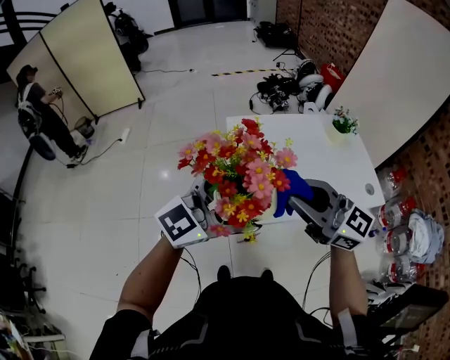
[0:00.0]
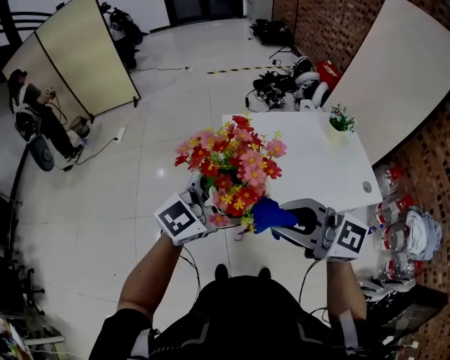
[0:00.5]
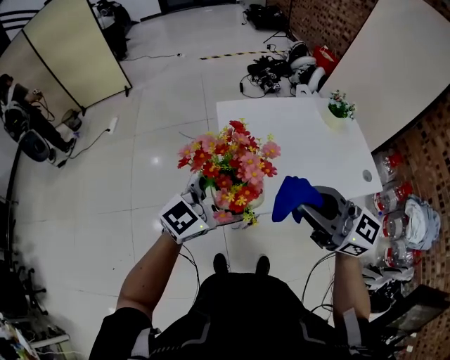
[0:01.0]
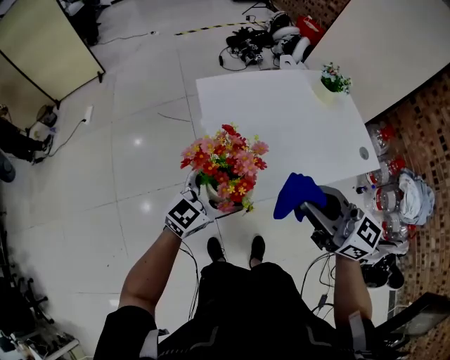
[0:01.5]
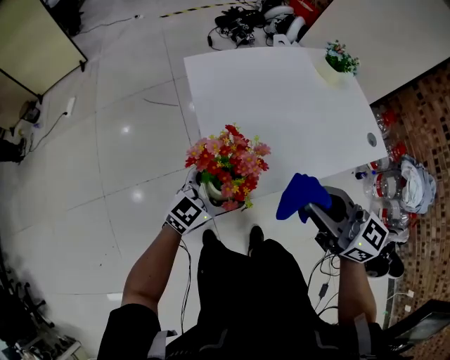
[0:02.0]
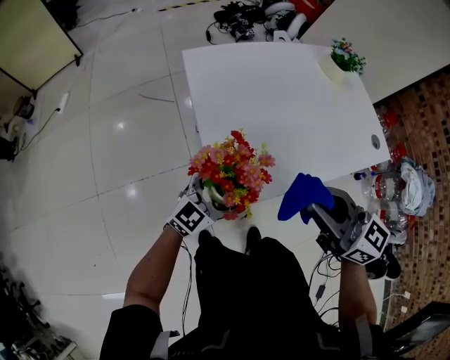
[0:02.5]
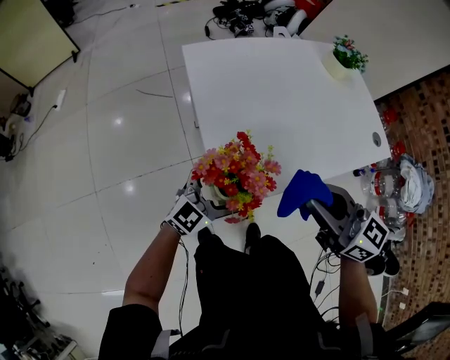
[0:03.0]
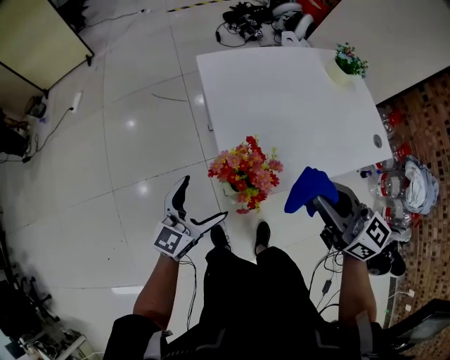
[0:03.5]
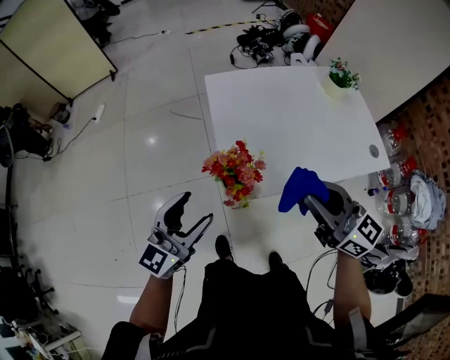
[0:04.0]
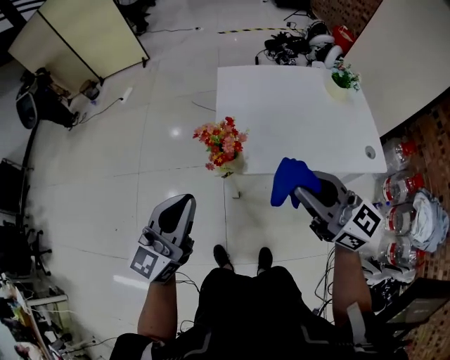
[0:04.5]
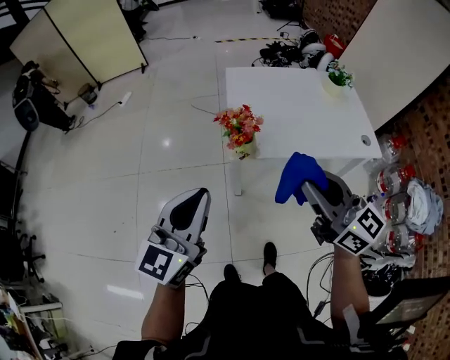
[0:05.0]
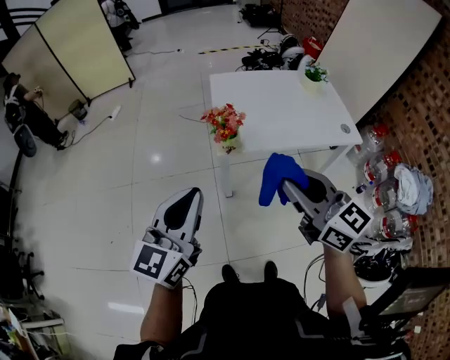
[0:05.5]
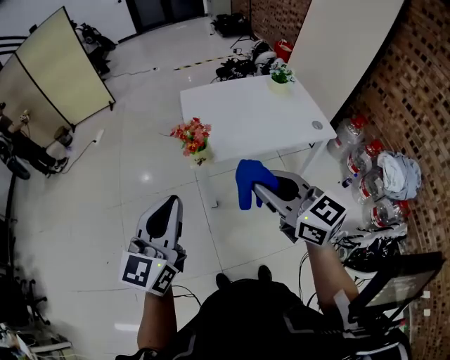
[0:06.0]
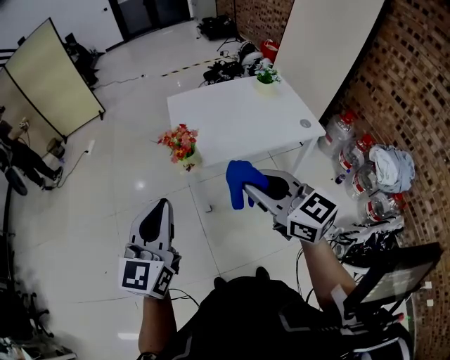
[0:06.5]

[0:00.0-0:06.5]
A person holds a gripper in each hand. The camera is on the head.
0:00.0 to 0:02.0: The right gripper heads downward, covering about 20 cm, and changes its angle by roughly 20 degrees. Meanwhile the left gripper shifts about 35 cm downward.
0:02.0 to 0:04.5: The right gripper changes place by roughly 20 cm. Meanwhile the left gripper moves upward, roughly 25 cm, swivels about 40 degrees, and closes.
0:04.5 to 0:06.5: The left gripper is displaced backward and upward by roughly 20 cm. The right gripper heads backward, covering some 20 cm.

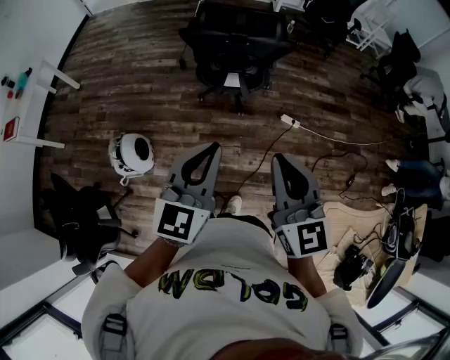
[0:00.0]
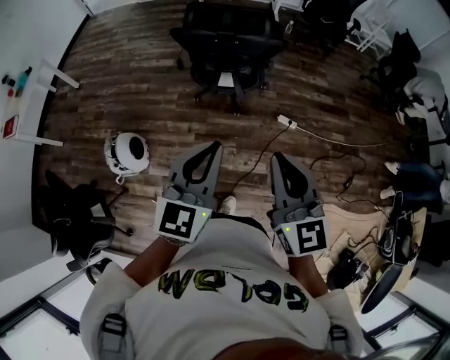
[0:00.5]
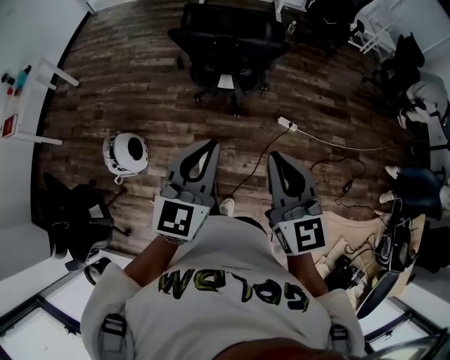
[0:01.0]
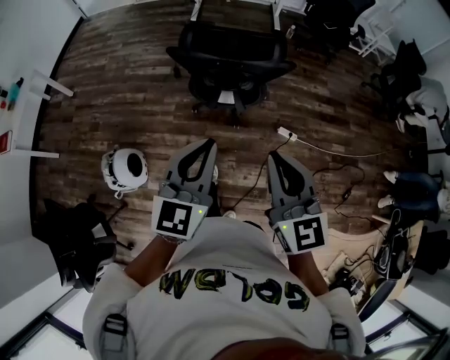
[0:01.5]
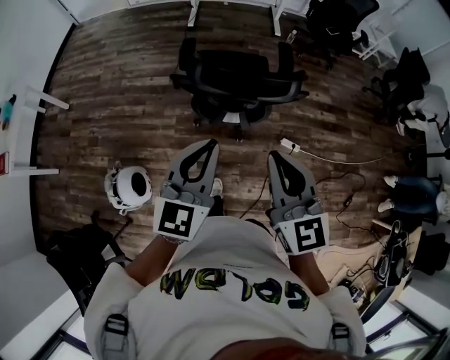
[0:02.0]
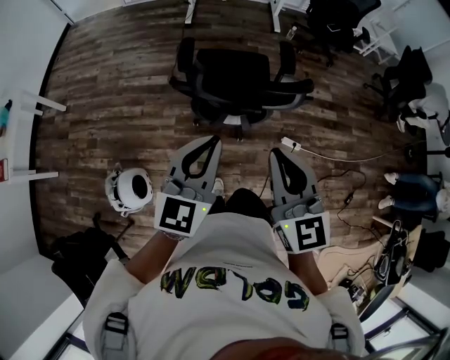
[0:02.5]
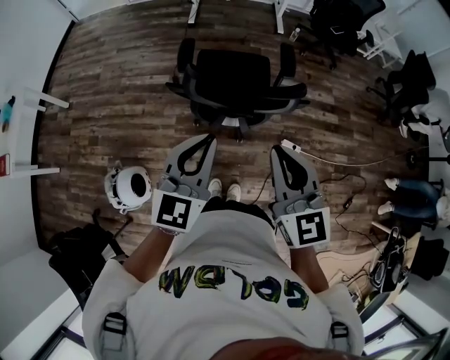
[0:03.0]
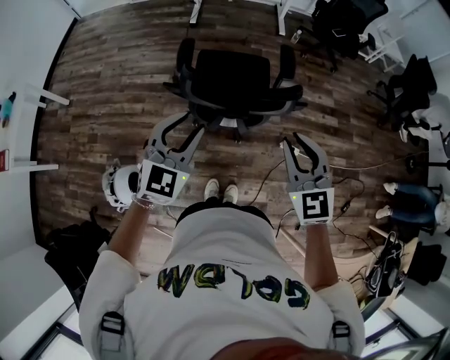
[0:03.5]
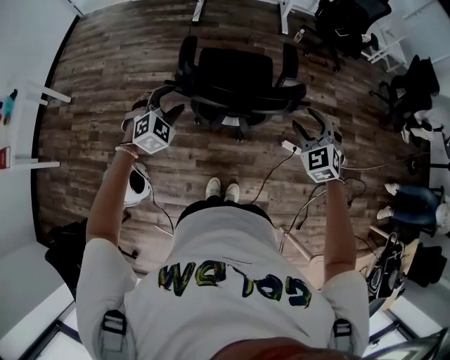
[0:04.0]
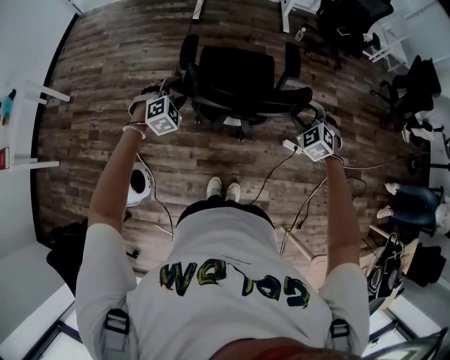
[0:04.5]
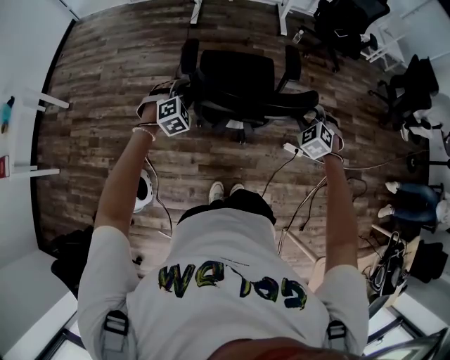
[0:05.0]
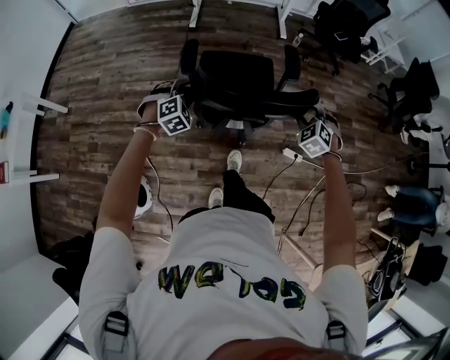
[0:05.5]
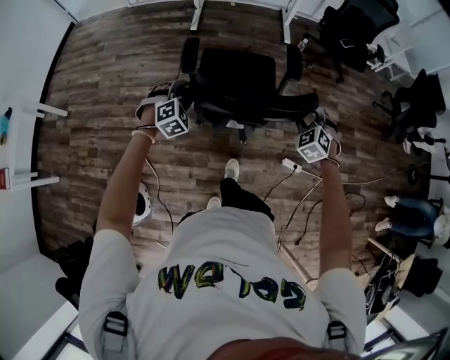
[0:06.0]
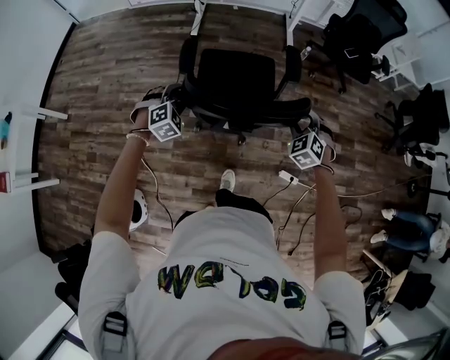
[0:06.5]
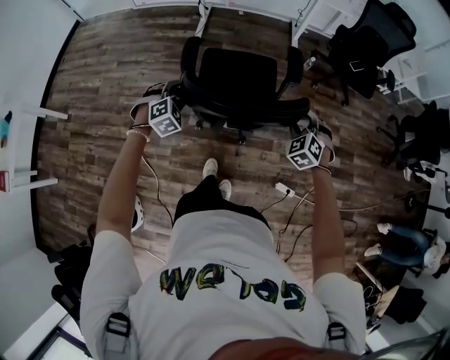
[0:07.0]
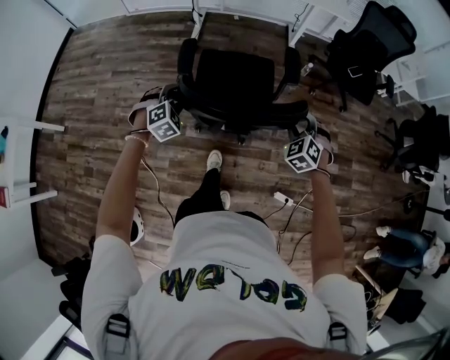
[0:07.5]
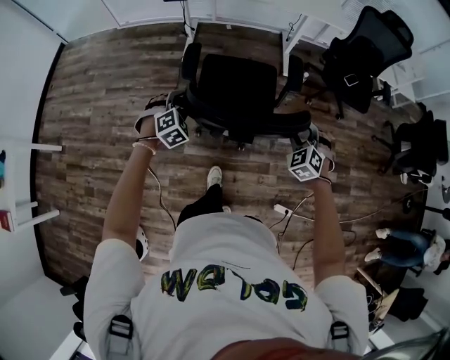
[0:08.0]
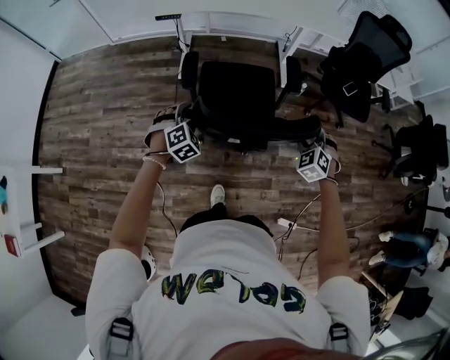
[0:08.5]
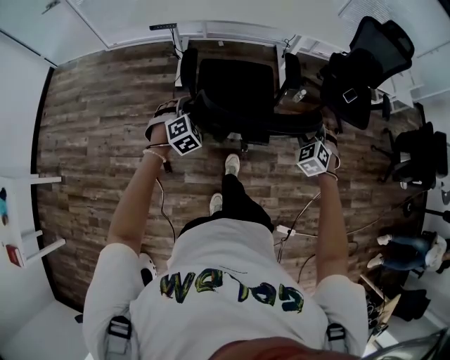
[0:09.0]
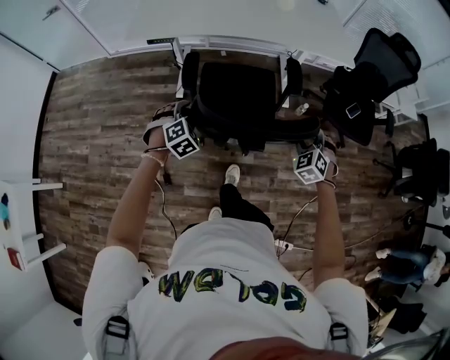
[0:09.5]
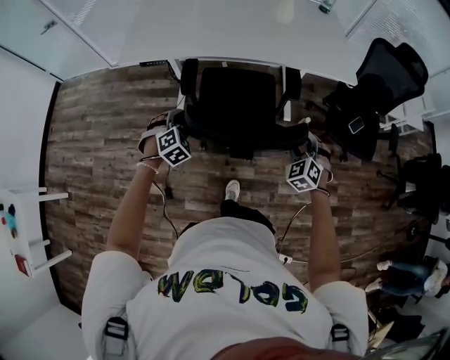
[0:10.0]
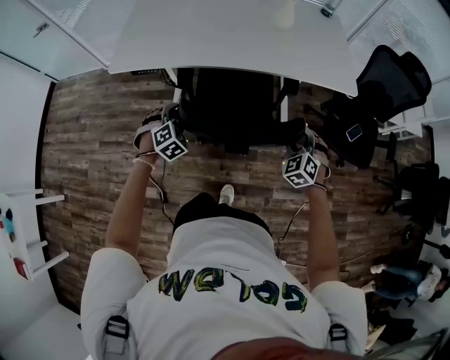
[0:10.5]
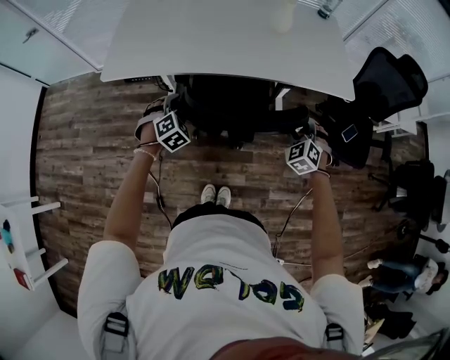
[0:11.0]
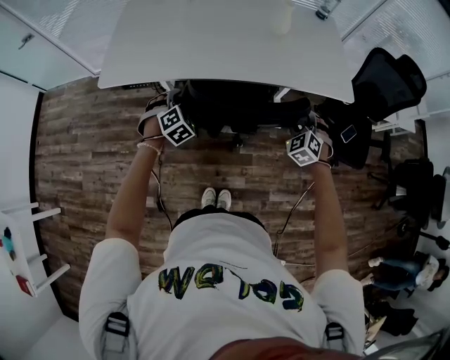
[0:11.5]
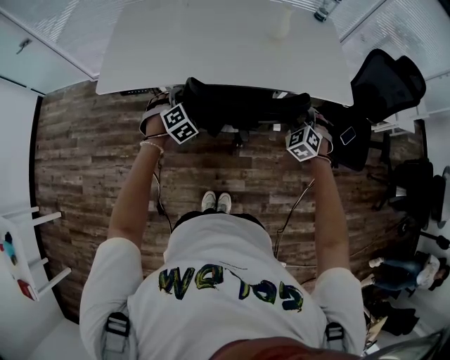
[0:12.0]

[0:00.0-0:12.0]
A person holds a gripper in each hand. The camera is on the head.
0:00.0 to 0:02.0: Both grippers travel together forward, approximately 30 cm.
0:02.0 to 0:04.0: The left gripper is displaced forward, downward and to the left by about 30 cm, points its fingers roughly 30 degrees further downward, and opens up; the right gripper heads forward, downward and to the right, covering about 30 cm, rotates about 40 degrees, and opens up.
0:04.0 to 0:06.0: The left gripper is displaced forward by some 20 cm, while the right gripper moves forward and downward, about 25 cm.
0:06.0 to 0:08.0: Both grippers move forward, some 35 cm.
0:08.0 to 0:10.0: Both grippers move forward, about 40 cm.
0:10.0 to 0:12.0: The grippers both shift forward by about 25 cm.

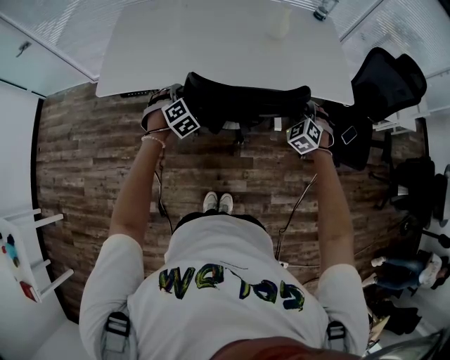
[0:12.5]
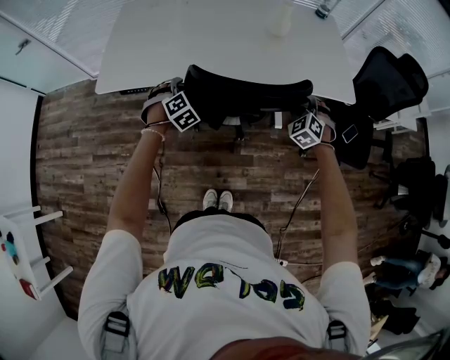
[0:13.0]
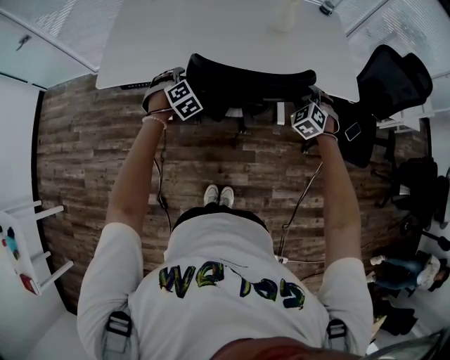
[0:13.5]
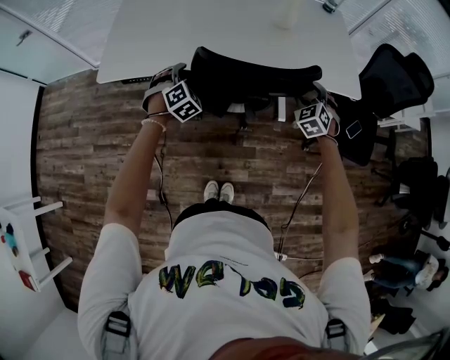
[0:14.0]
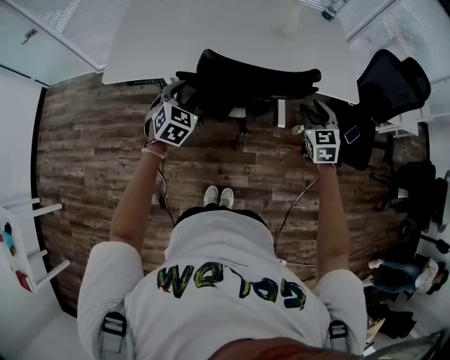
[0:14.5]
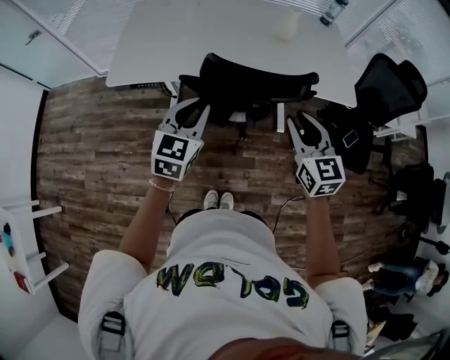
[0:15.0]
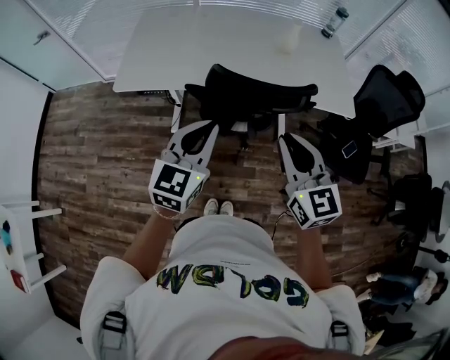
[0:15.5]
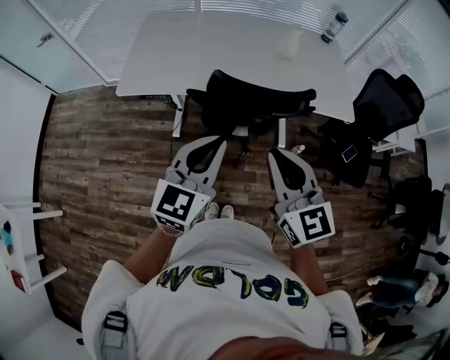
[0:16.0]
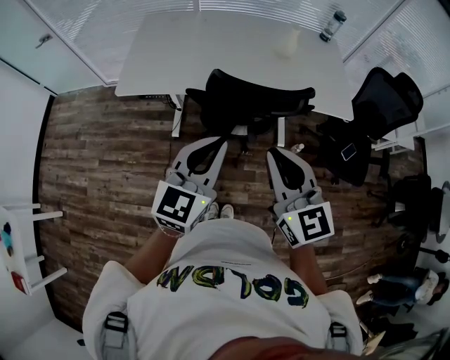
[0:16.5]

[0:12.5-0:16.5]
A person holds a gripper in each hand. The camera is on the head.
0:12.5 to 0:14.5: The right gripper goes roughly 5 cm upward, and turns by roughly 40 degrees, while the left gripper moves upward and backward, some 10 cm, and changes its angle by roughly 30 degrees.
0:14.5 to 0:16.5: The left gripper shifts about 25 cm upward and backward, turns by roughly 40 degrees, and closes up. Meanwhile the right gripper shifts about 35 cm upward, backward and to the left, rotates roughly 30 degrees, and closes.

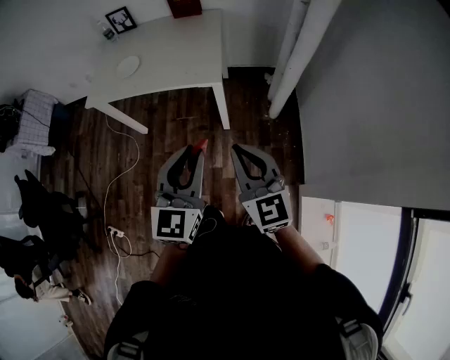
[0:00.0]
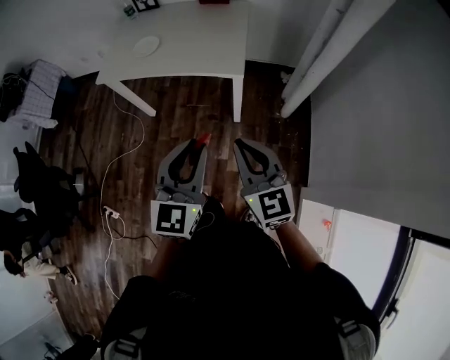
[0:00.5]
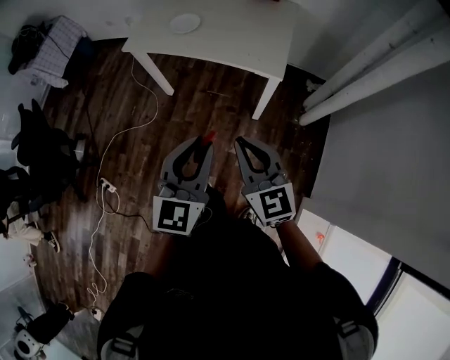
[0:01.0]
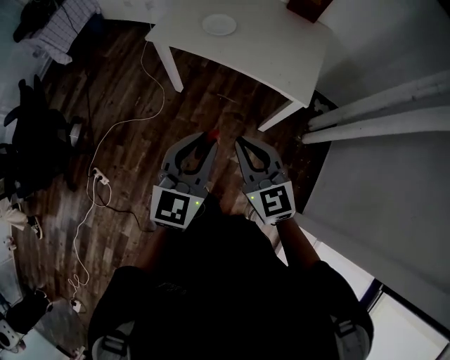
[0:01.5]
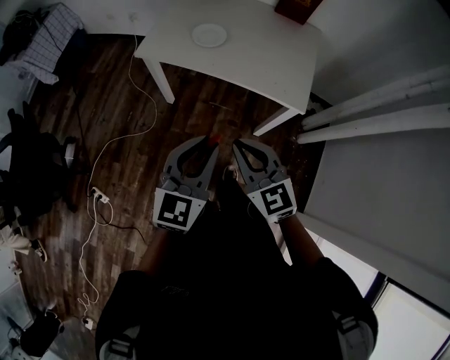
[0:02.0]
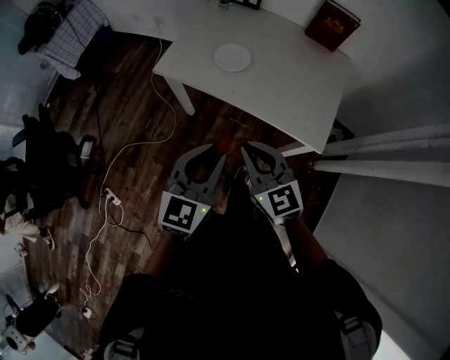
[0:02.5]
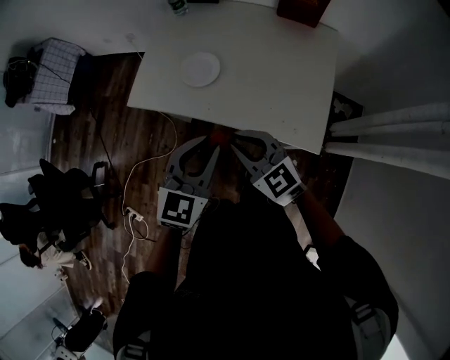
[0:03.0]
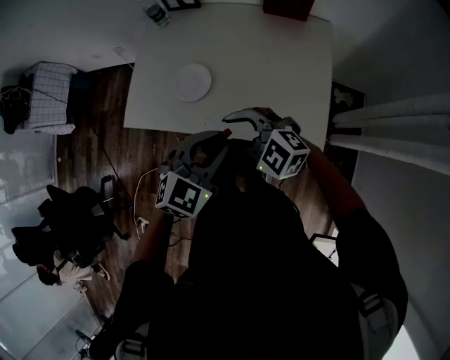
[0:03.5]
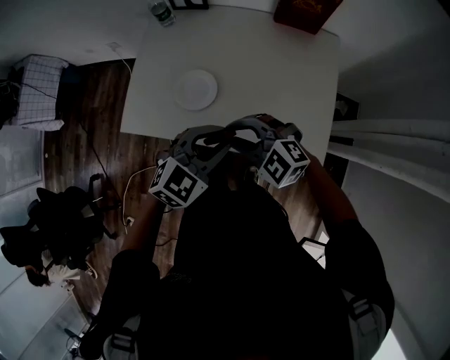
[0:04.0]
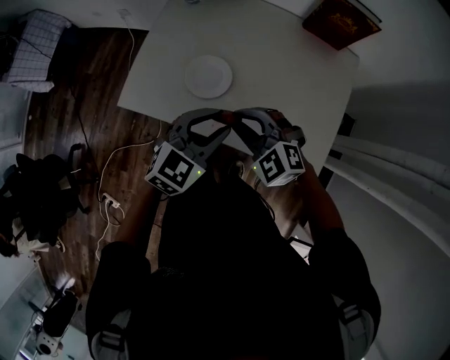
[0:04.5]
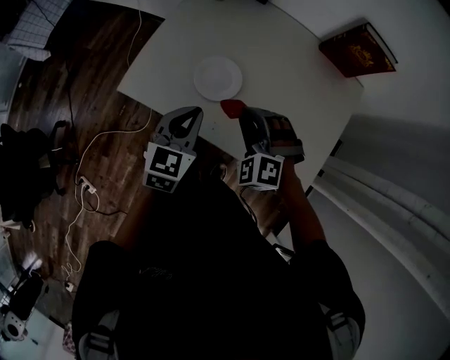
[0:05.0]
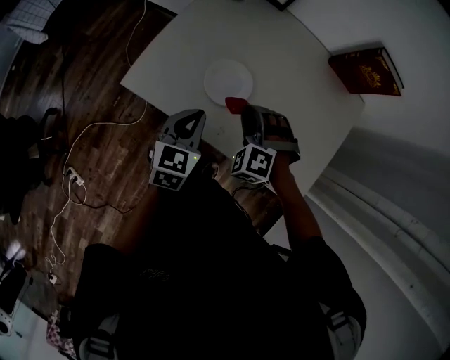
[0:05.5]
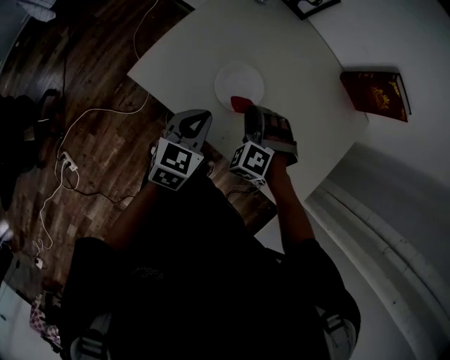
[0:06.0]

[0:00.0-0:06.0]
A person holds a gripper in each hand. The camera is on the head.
0:00.0 to 0:02.0: Both grippers move to the left and forward, some 30 cm. The right gripper swivels roughly 30 degrees.
0:02.0 to 0:04.0: Both grippers move forward, about 35 cm. The left gripper rotates roughly 40 degrees. The right gripper swivels about 40 degrees, and opens up.
0:04.0 to 0:06.0: The left gripper moves to the left and downward, some 20 cm, rotates roughly 50 degrees, and closes its fingers; the right gripper goes some 20 cm downward, forward and to the left, and swivels approximately 50 degrees.
